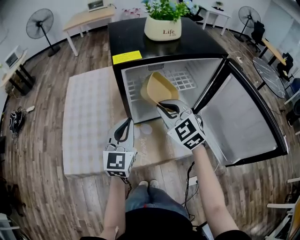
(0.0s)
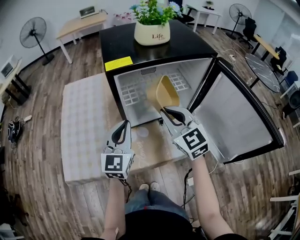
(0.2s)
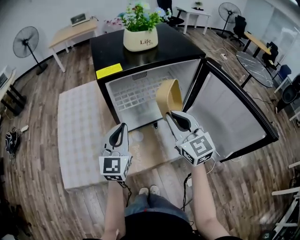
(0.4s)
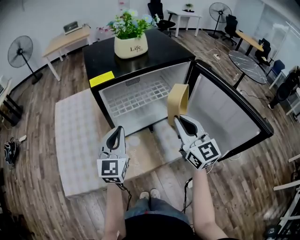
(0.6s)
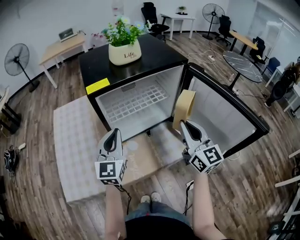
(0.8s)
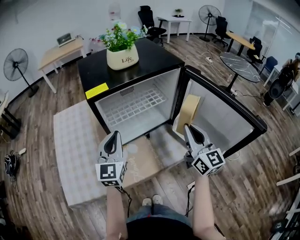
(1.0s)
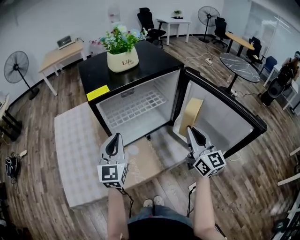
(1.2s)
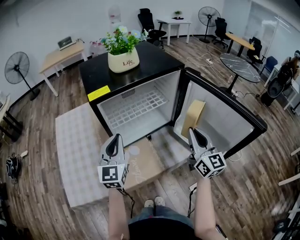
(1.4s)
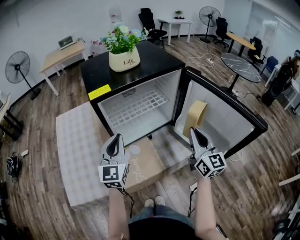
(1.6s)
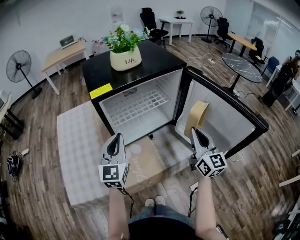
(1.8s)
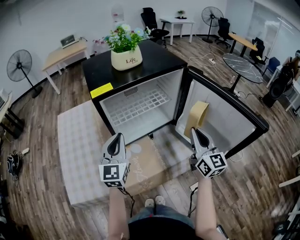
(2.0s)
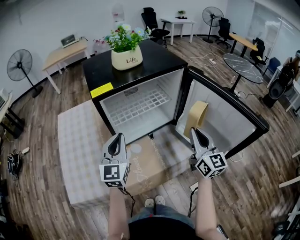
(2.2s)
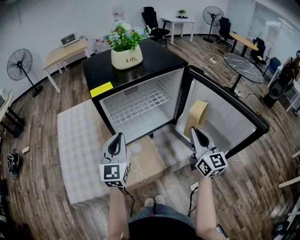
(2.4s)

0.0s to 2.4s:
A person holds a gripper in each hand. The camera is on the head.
0.0s to 1.2s: The left gripper ends up about 5 cm from where it was, while the right gripper travels to the right and backward by approximately 25 cm, and tilts its fingers some 30 degrees upward.
1.2s to 2.4s: The grippers make only small movements.

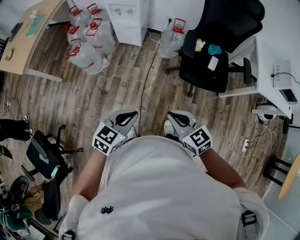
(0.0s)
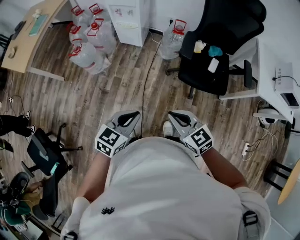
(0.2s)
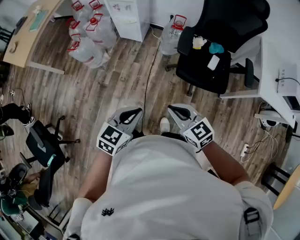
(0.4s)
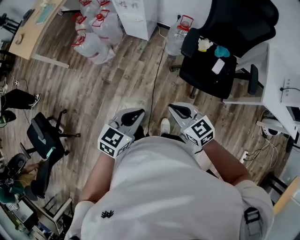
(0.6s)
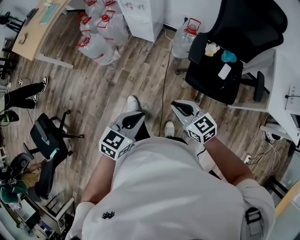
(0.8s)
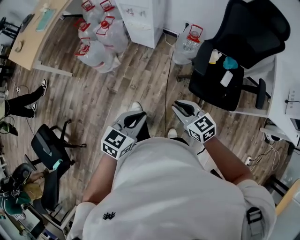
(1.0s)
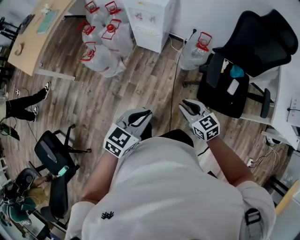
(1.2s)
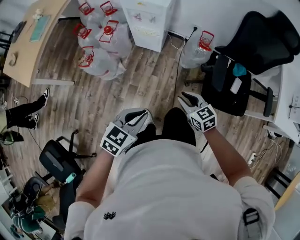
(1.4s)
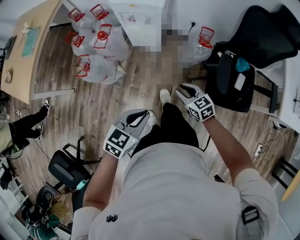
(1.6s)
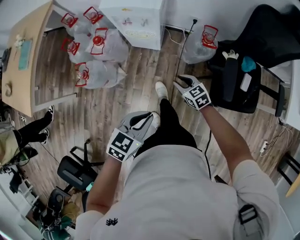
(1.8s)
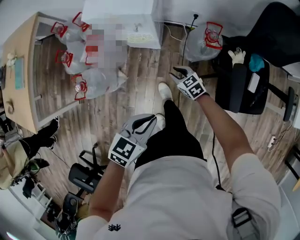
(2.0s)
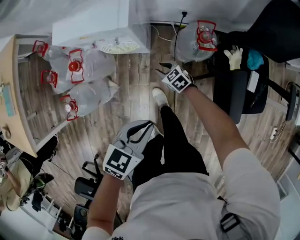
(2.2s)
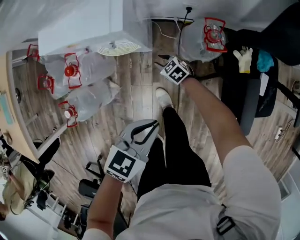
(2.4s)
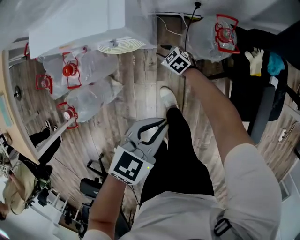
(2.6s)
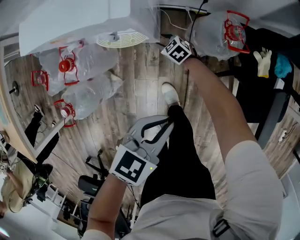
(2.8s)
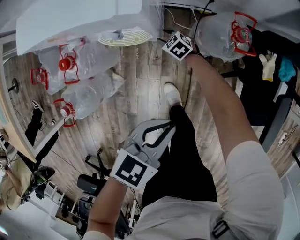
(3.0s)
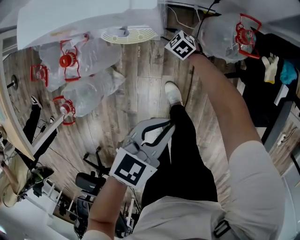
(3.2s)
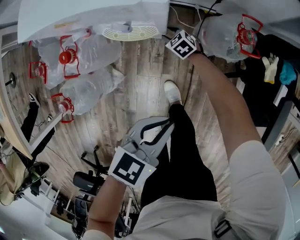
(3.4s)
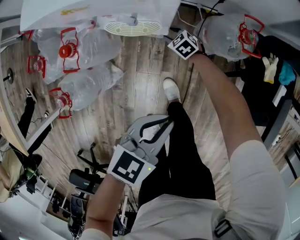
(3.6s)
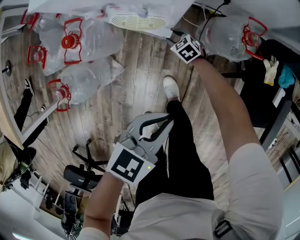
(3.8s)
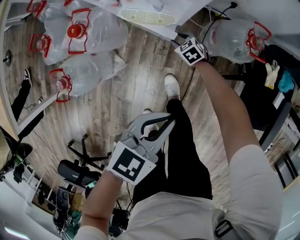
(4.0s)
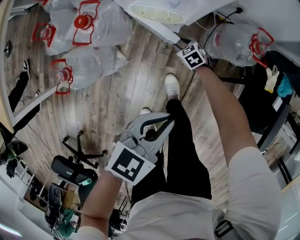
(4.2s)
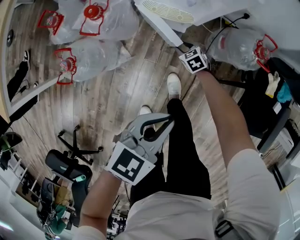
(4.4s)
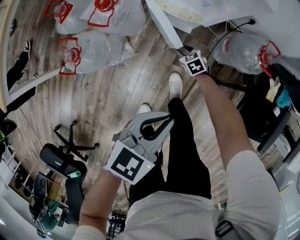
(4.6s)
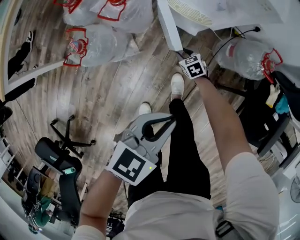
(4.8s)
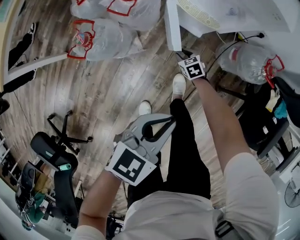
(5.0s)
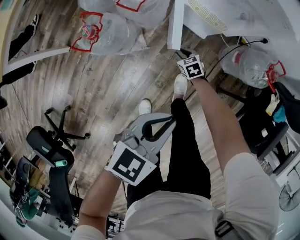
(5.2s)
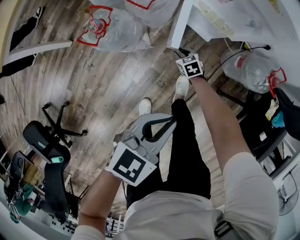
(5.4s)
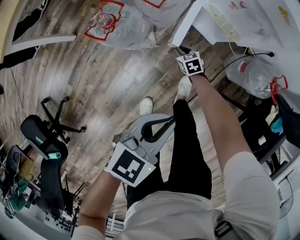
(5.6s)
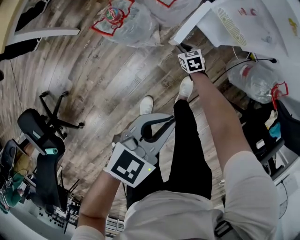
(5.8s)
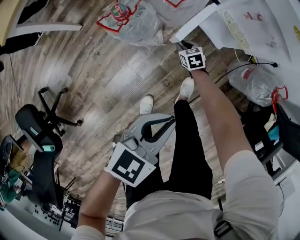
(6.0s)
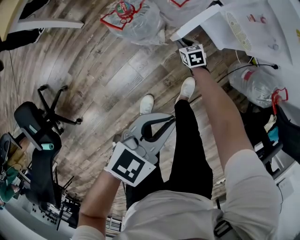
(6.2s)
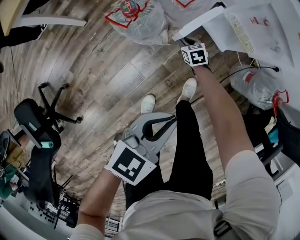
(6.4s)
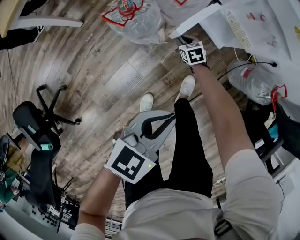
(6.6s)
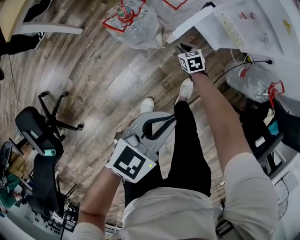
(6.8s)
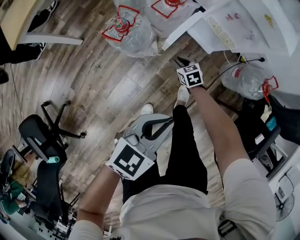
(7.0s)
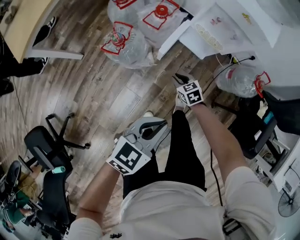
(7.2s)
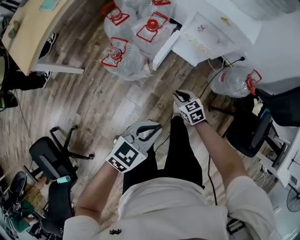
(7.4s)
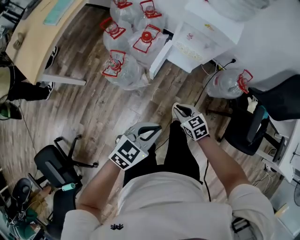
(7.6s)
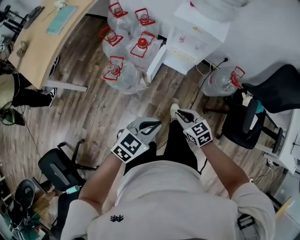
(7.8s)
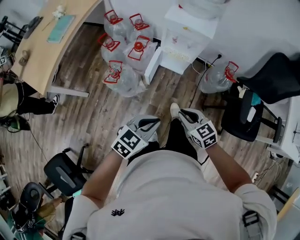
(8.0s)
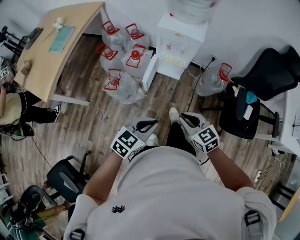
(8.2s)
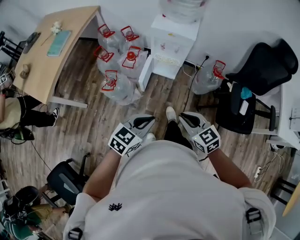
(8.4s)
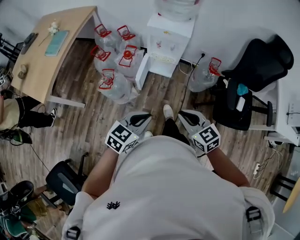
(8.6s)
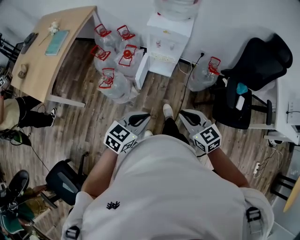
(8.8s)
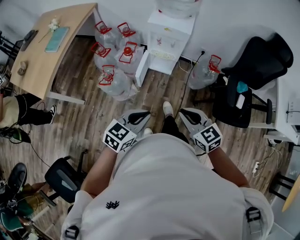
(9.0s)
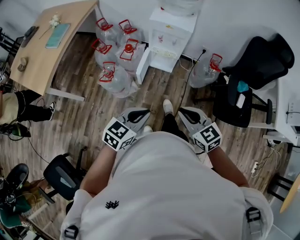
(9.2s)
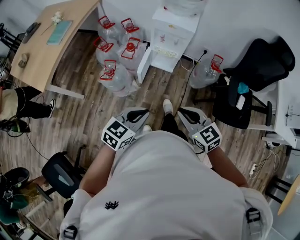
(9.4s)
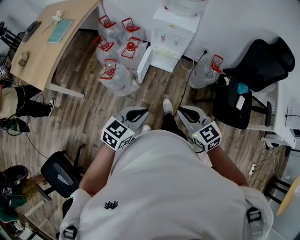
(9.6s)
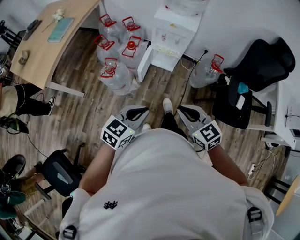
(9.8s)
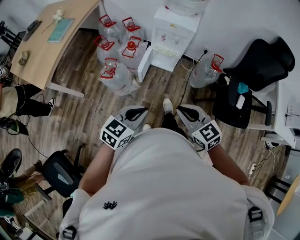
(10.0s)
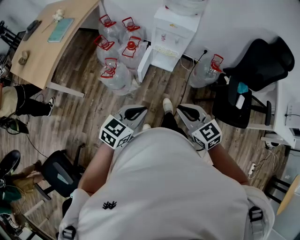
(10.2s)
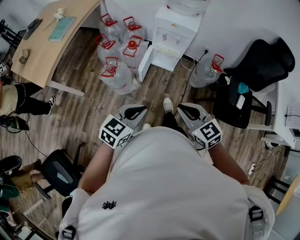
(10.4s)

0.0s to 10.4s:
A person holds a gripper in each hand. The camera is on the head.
0.0s to 1.4s: Both grippers travel together forward, approximately 25 cm.
1.4s to 3.0s: The right gripper shifts some 70 cm forward and downward, and opens up. Meanwhile the left gripper travels forward and downward by approximately 40 cm.
3.0s to 4.4s: The right gripper goes roughly 15 cm backward. The left gripper is displaced to the left and backward by about 15 cm.
4.4s to 6.0s: The right gripper shifts approximately 25 cm to the left; the left gripper heads to the left and backward, covering roughly 20 cm, and rotates roughly 20 degrees.
6.0s to 7.4s: The left gripper shifts some 10 cm upward and backward, while the right gripper travels upward and backward by about 30 cm.
7.4s to 9.0s: The left gripper is displaced upward and backward by some 15 cm, while the right gripper moves upward and backward, approximately 40 cm, and turns by about 30 degrees.
9.0s to 10.4s: The grippers make only small movements.

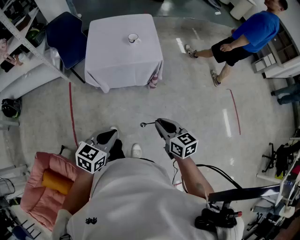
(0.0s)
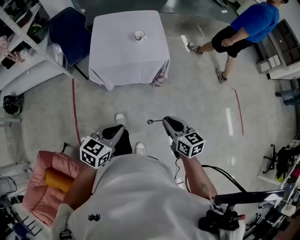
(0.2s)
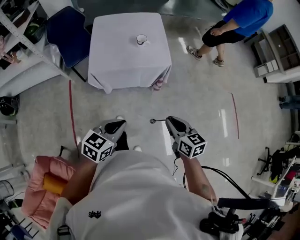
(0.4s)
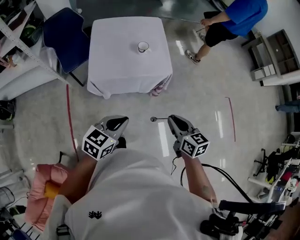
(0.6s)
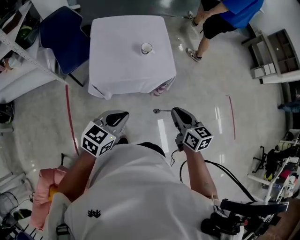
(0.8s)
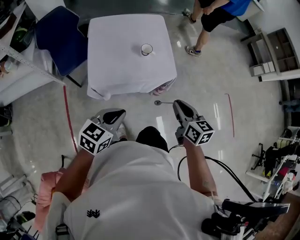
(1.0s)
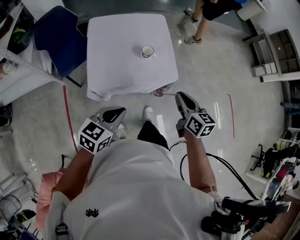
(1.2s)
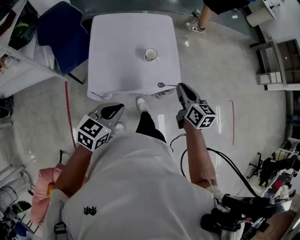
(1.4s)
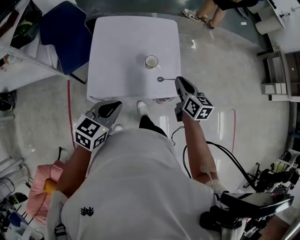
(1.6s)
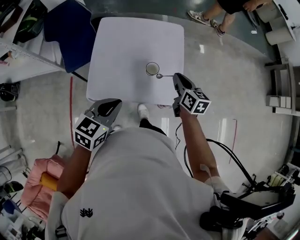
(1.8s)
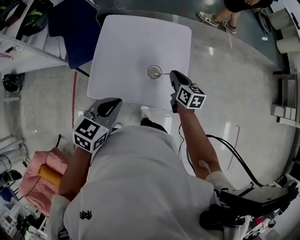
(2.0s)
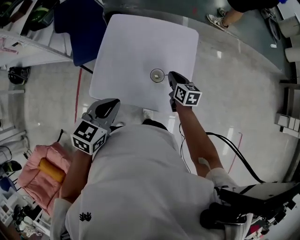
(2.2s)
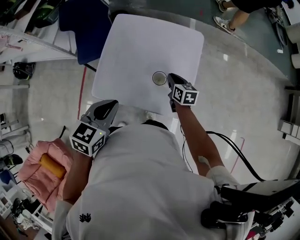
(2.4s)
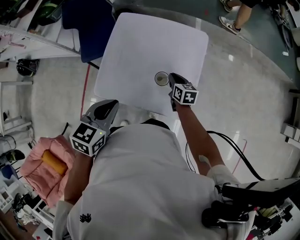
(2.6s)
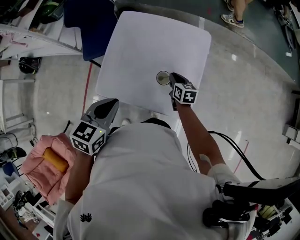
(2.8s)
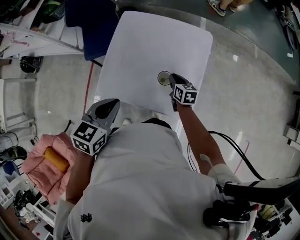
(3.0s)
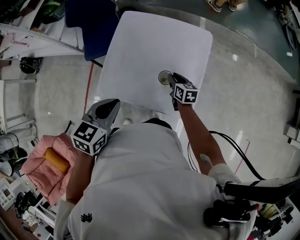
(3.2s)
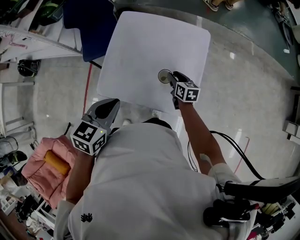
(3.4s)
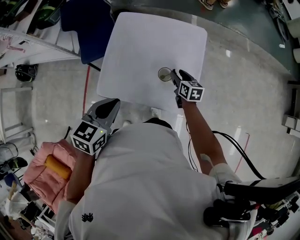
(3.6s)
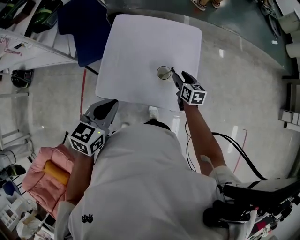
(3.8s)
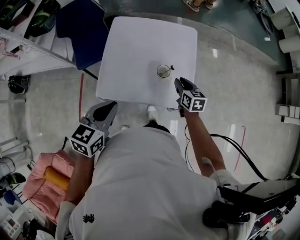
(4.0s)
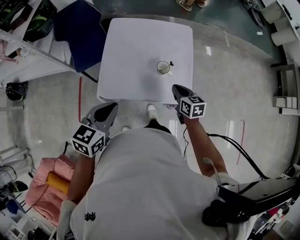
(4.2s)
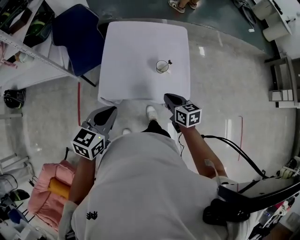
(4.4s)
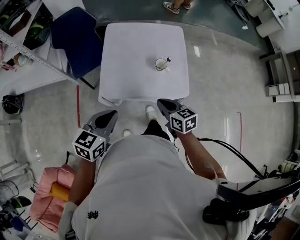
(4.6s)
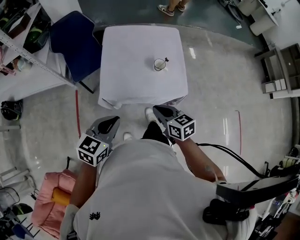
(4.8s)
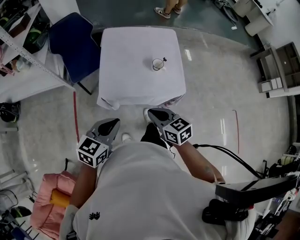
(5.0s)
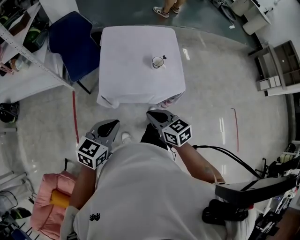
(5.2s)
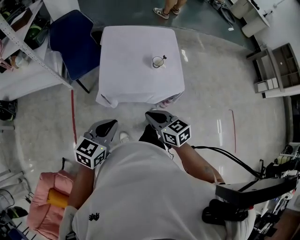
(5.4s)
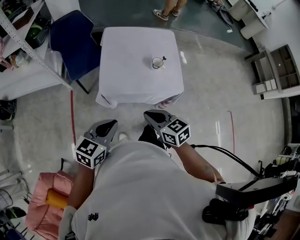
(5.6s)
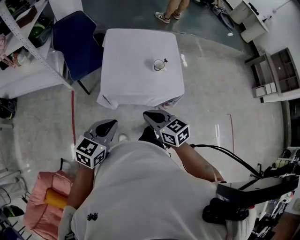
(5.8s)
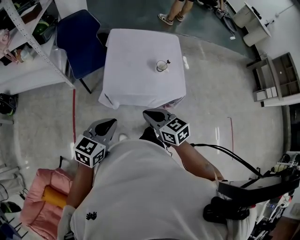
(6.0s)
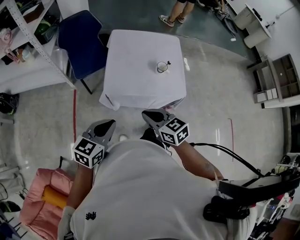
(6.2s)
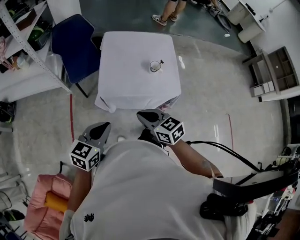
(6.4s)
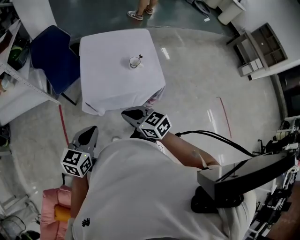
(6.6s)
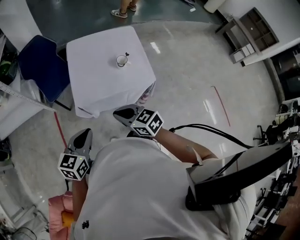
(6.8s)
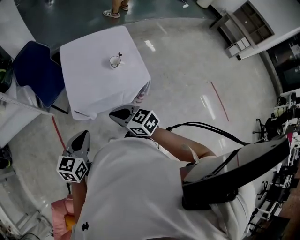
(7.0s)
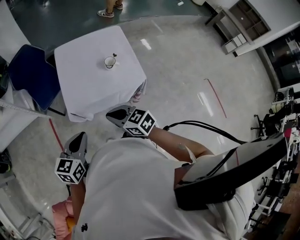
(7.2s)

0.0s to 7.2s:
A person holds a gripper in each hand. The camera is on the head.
0.0s to 1.4s: The pair of grippers is taken forward, about 40 cm.
1.4s to 2.8s: The left gripper ends up some 20 cm from where it was, and changes its angle by roughly 30 degrees. The right gripper moves approximately 35 cm, and changes its angle by some 30 degrees.
2.8s to 4.4s: The right gripper heads backward and upward, covering roughly 25 cm, and opens, then closes again. The left gripper heads backward and to the left, covering approximately 15 cm.
4.4s to 5.8s: The right gripper travels backward, to the left and upward by about 25 cm; the left gripper is displaced backward and to the left by about 15 cm.
5.8s to 7.2s: The grippers make only small movements.

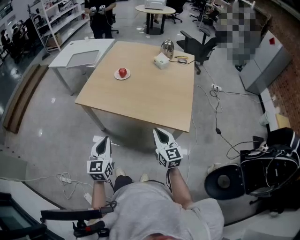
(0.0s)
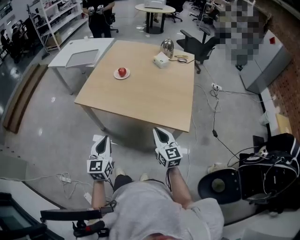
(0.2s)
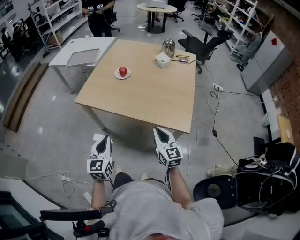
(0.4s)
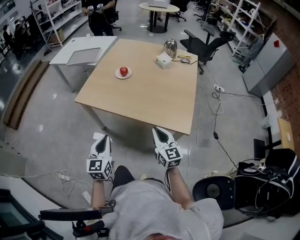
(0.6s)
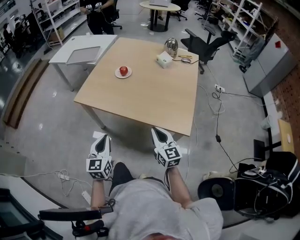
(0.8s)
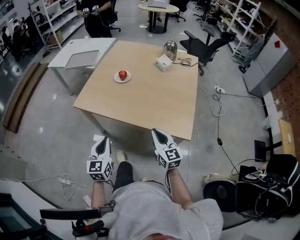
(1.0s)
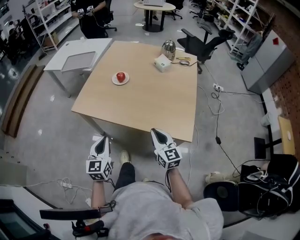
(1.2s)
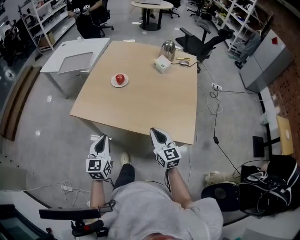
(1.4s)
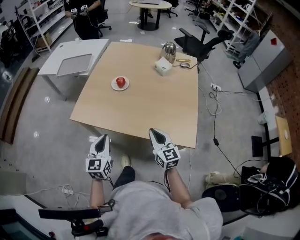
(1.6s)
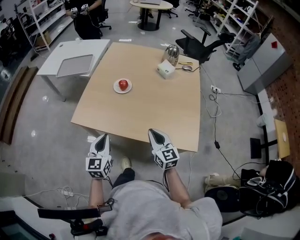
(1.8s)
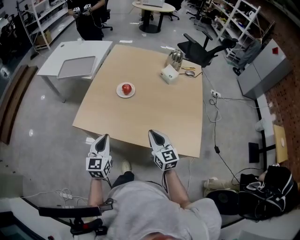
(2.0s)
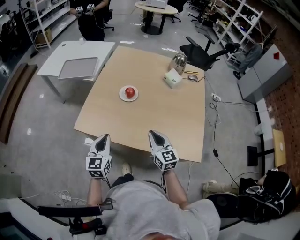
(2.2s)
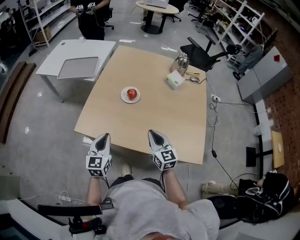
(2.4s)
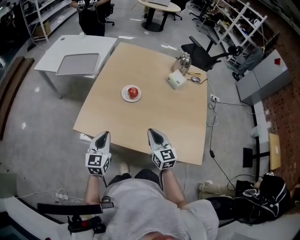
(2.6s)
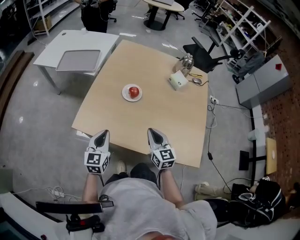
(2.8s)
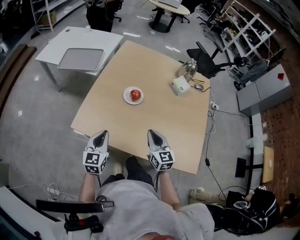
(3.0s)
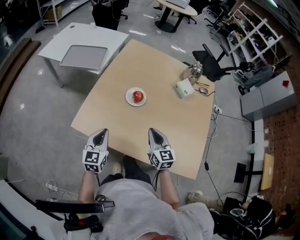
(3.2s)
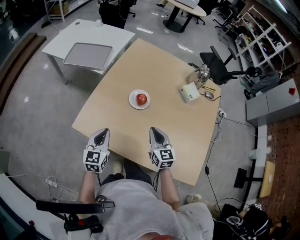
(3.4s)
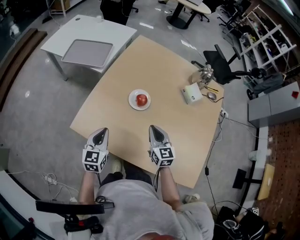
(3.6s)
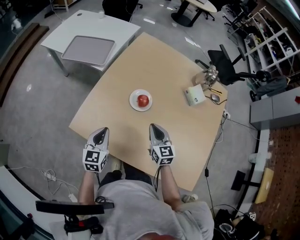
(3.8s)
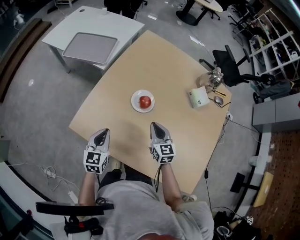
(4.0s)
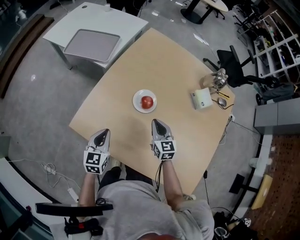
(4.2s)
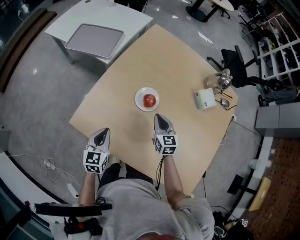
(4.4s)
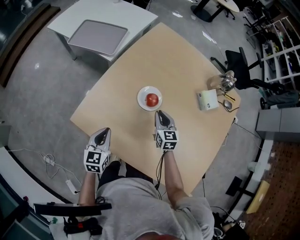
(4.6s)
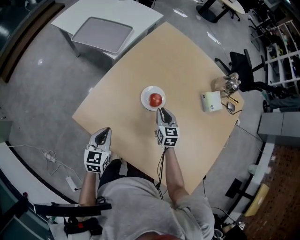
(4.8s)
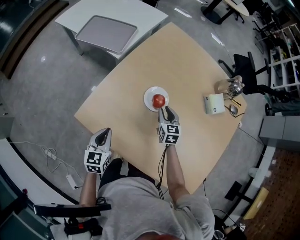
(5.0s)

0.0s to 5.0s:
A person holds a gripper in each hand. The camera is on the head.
0.0s to 1.6s: The grippers both shift forward by roughly 15 cm.
1.6s to 3.4s: The right gripper shifts some 25 cm forward, while the left gripper shifts about 25 cm forward and to the left.
3.4s to 5.0s: The right gripper is displaced forward and downward by approximately 25 cm. The left gripper travels downward by about 5 cm.
